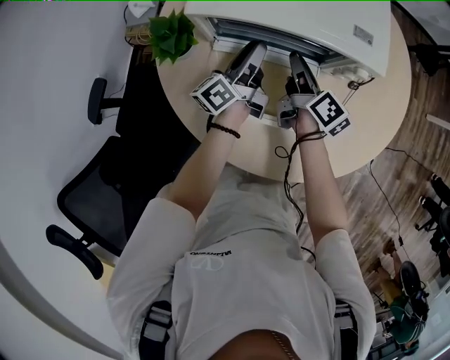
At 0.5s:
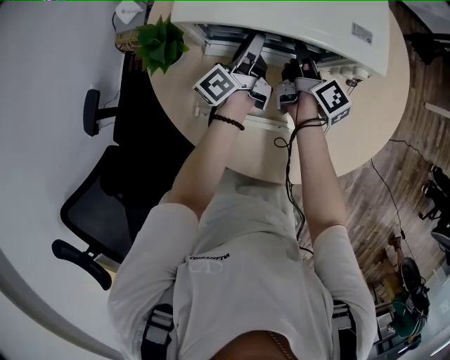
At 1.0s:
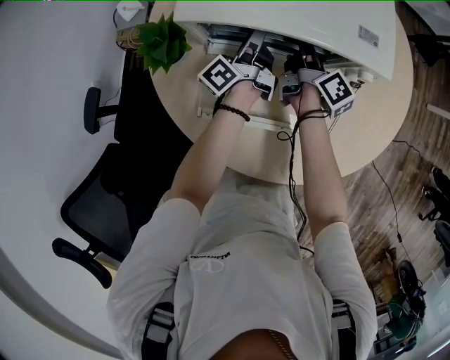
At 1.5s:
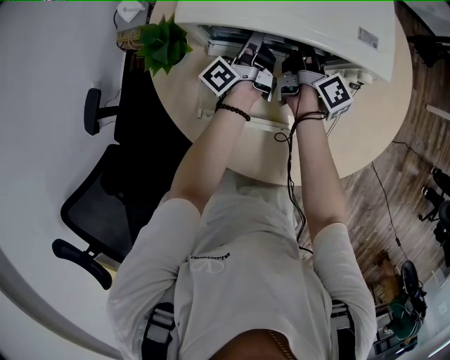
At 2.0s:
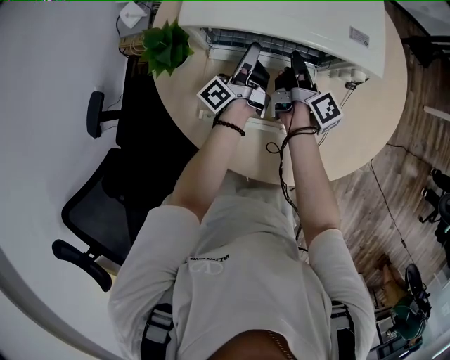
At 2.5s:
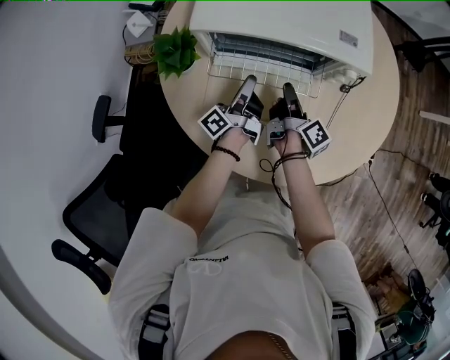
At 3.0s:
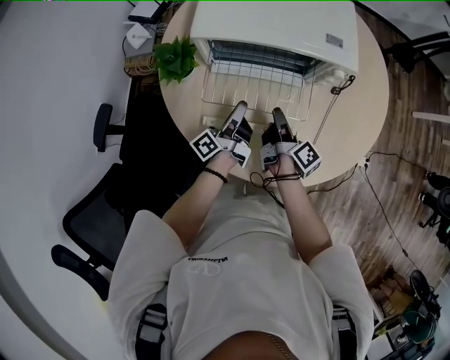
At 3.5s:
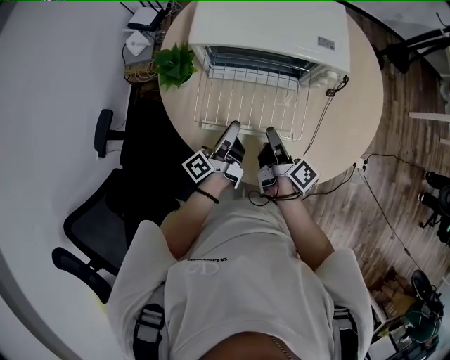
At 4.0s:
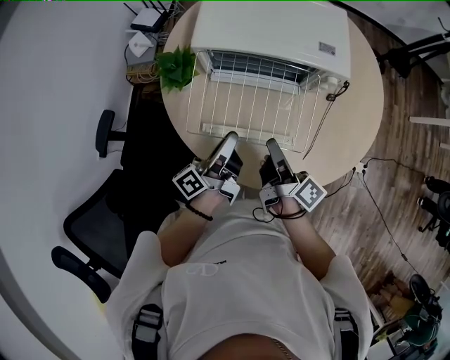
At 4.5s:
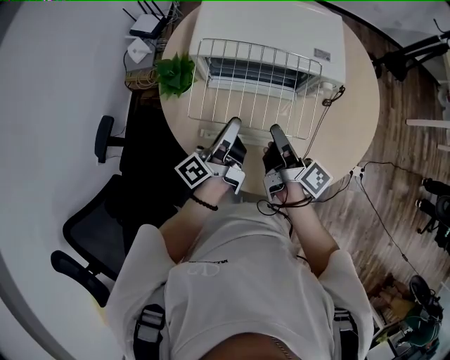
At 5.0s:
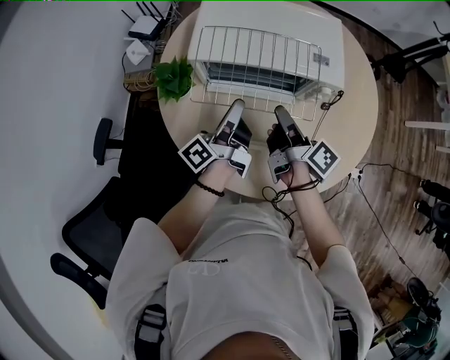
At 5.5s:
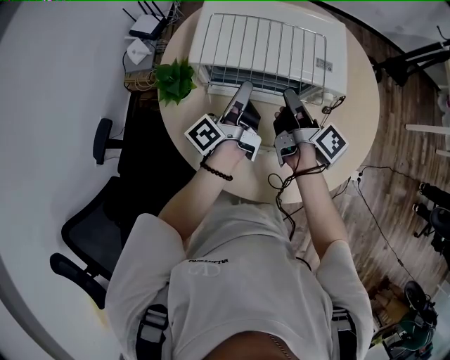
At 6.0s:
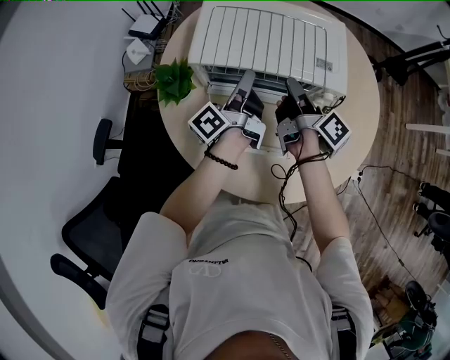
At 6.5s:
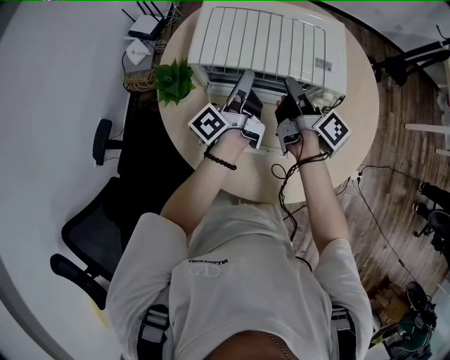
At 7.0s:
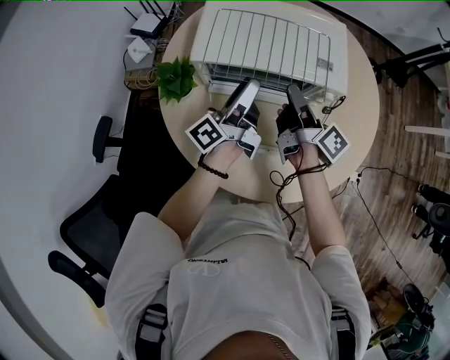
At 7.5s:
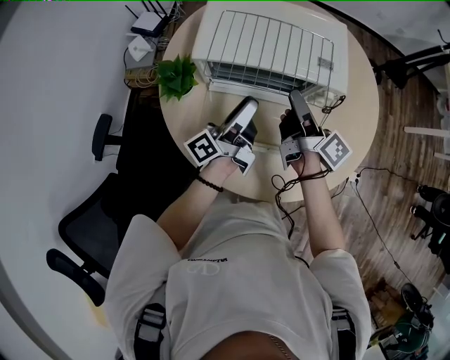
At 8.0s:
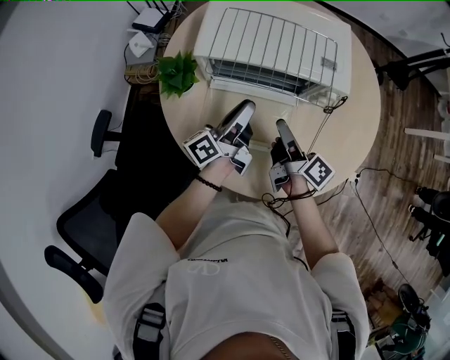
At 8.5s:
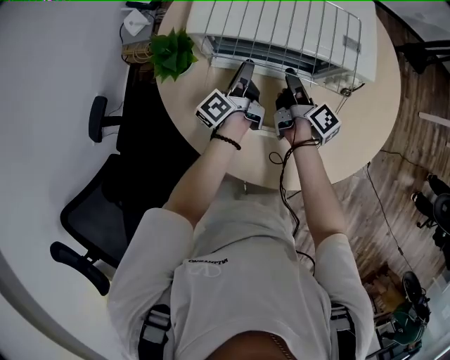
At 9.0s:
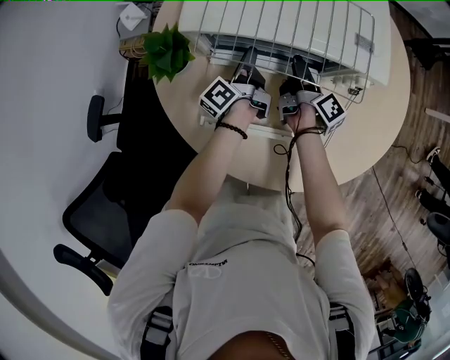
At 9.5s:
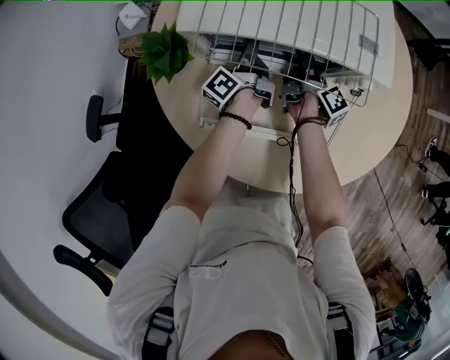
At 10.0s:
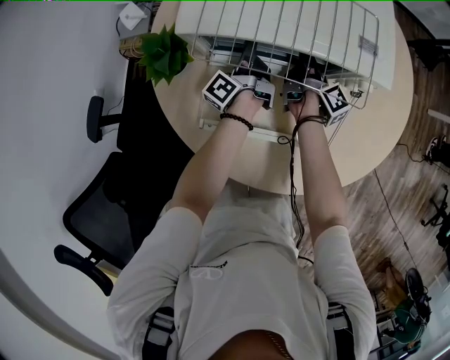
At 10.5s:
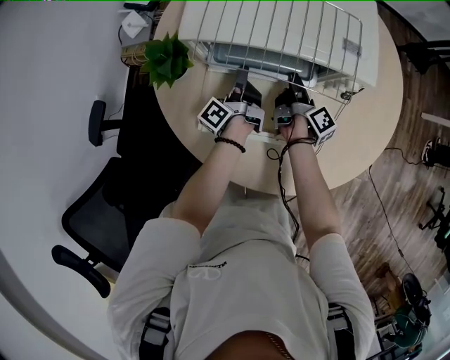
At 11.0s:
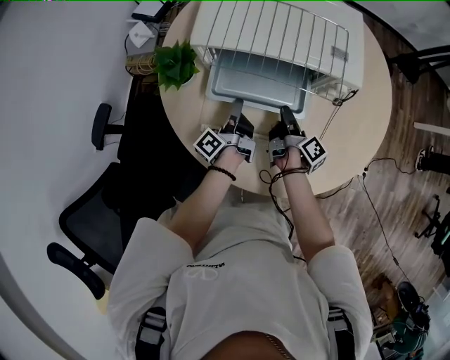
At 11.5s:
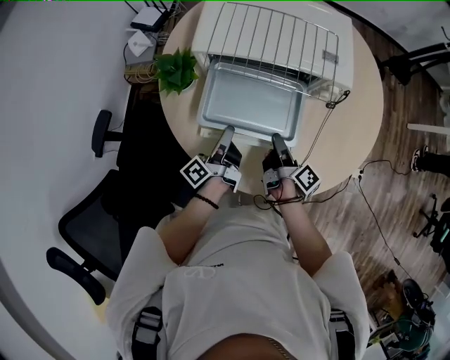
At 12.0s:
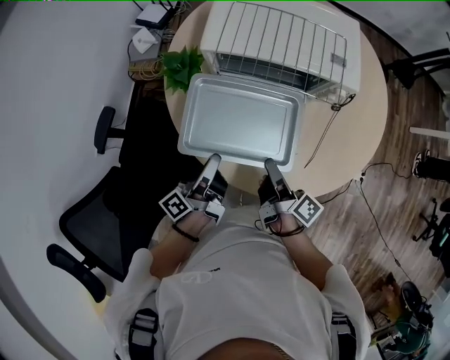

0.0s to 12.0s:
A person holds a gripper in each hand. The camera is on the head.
0.0s to 2.0s: The right gripper changes its angle by some 30 degrees, and closes up, while the left gripper rotates some 20 degrees, and closes up.
2.0s to 4.0s: The grippers both shift backward and upward by approximately 25 cm.
4.0s to 6.0s: Both grippers travel together forward, approximately 20 cm.
6.0s to 8.0s: The right gripper goes some 10 cm backward and downward, and opens up, while the left gripper travels backward by roughly 10 cm, and opens up.
8.0s to 10.0s: The left gripper goes roughly 20 cm downward and forward, rotates some 20 degrees, and closes up; the right gripper heads forward and downward, covering about 25 cm, changes its angle by approximately 30 degrees, and closes its fingers.
10.0s to 12.0s: The grippers both shift backward and upward by roughly 35 cm. The right gripper changes its angle by approximately 20 degrees.

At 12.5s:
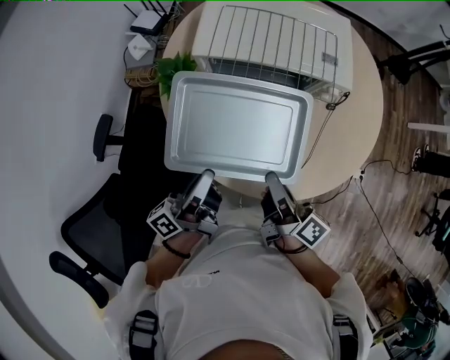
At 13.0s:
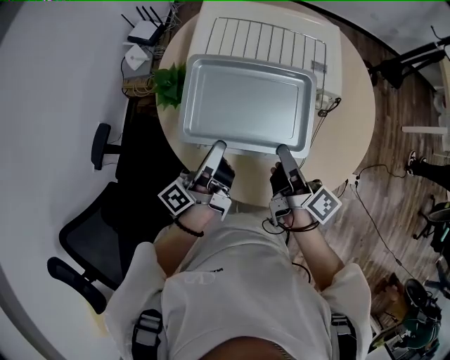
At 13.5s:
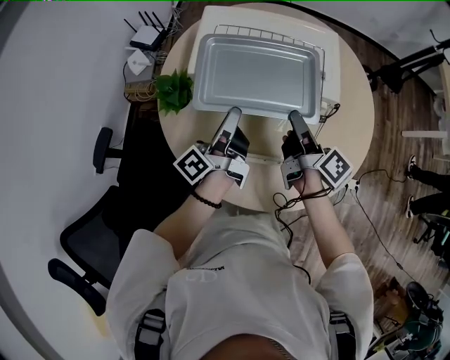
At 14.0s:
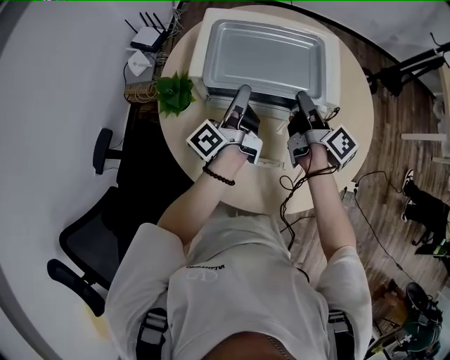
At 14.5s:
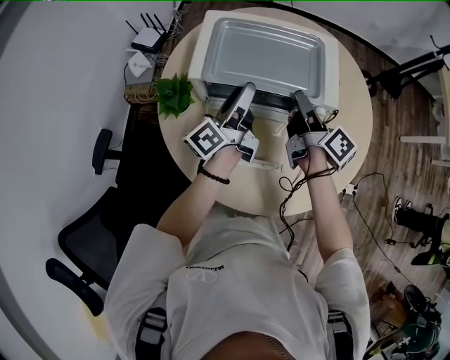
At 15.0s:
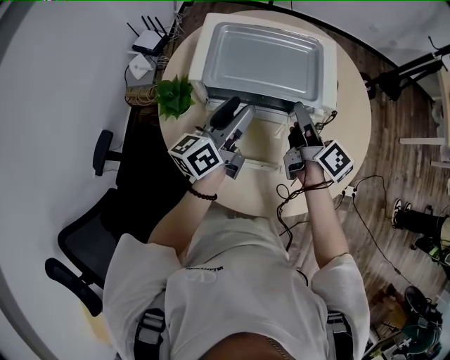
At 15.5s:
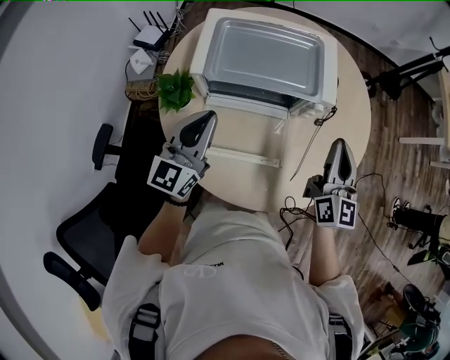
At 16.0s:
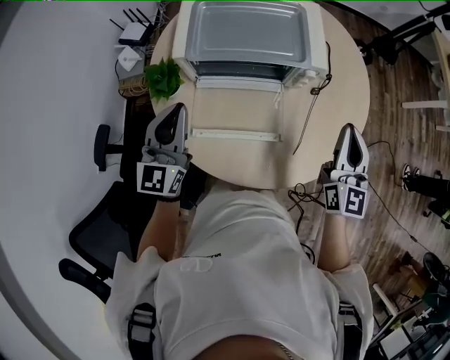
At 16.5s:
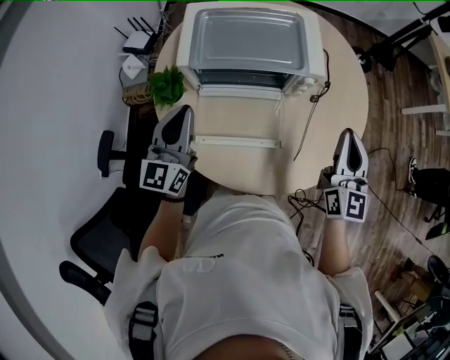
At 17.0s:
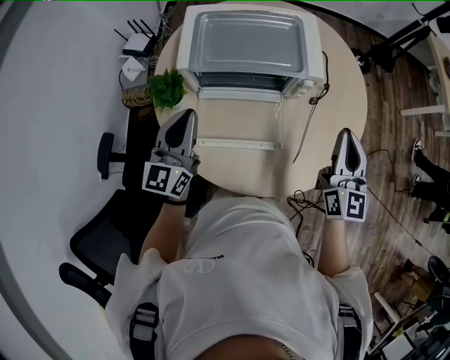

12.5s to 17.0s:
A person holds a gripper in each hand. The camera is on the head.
12.5s to 14.5s: The grippers both shift forward by roughly 25 cm. The left gripper opens up.
14.5s to 17.0s: The right gripper moves to the right, backward and upward, approximately 20 cm, rotates around the line of its fingers by some 70 degrees, counterclockwise from behind, and closes up, while the left gripper travels backward and to the left by some 15 cm, rotates around the line of its fingers by approximately 60 degrees, clockwise from behind, and closes up.

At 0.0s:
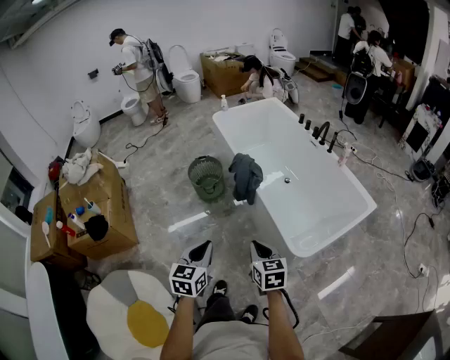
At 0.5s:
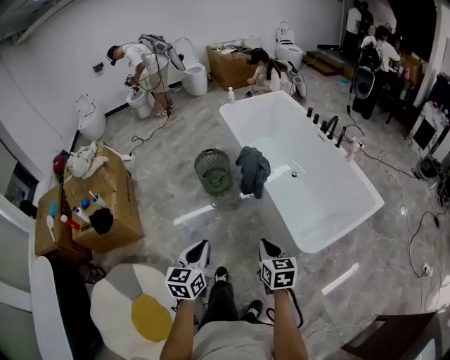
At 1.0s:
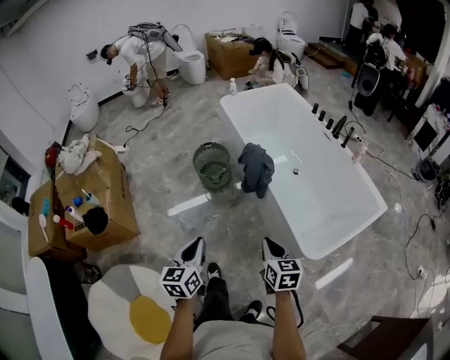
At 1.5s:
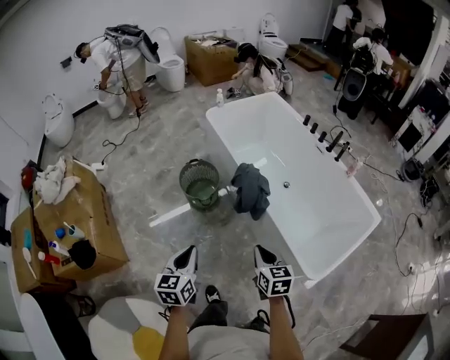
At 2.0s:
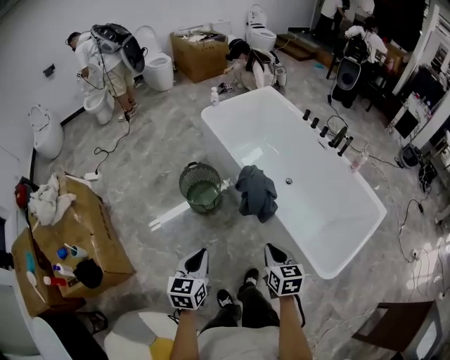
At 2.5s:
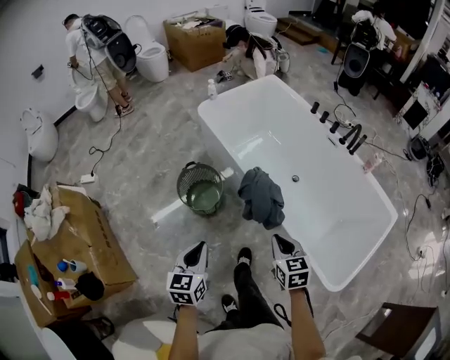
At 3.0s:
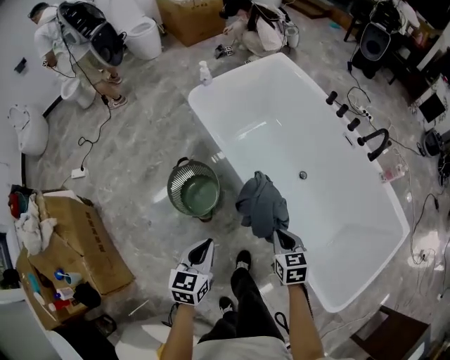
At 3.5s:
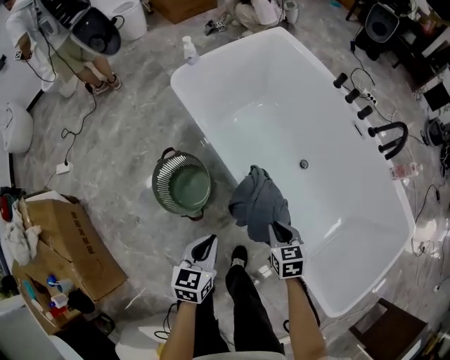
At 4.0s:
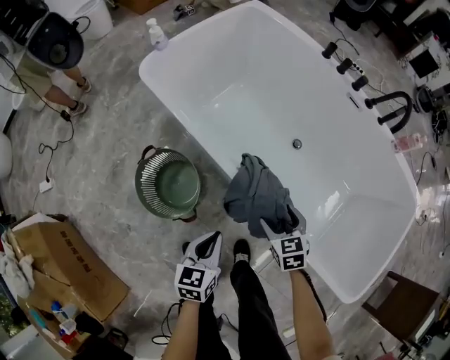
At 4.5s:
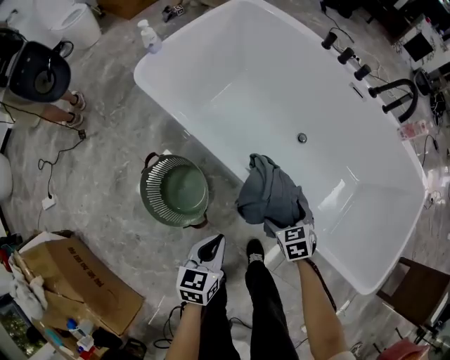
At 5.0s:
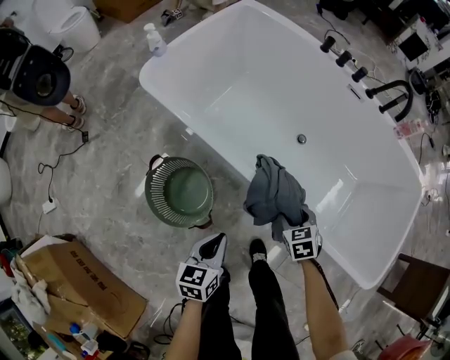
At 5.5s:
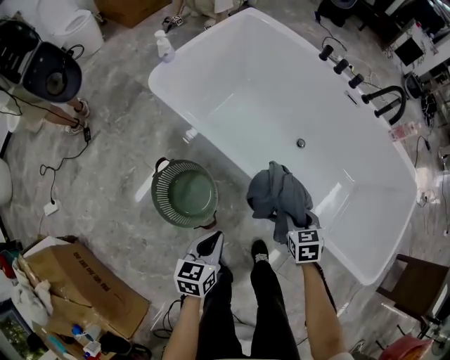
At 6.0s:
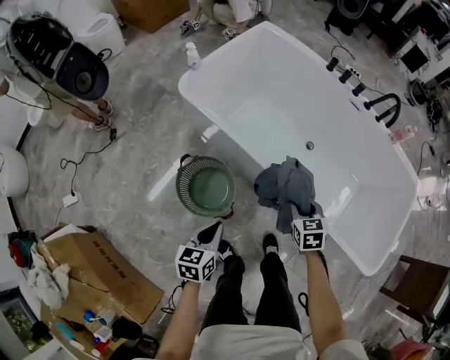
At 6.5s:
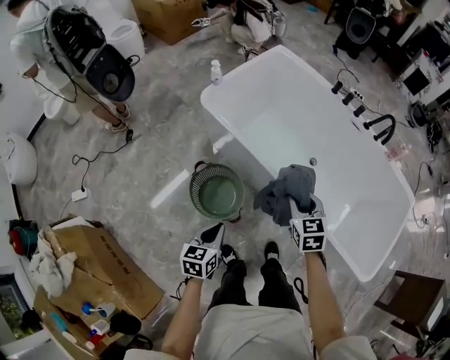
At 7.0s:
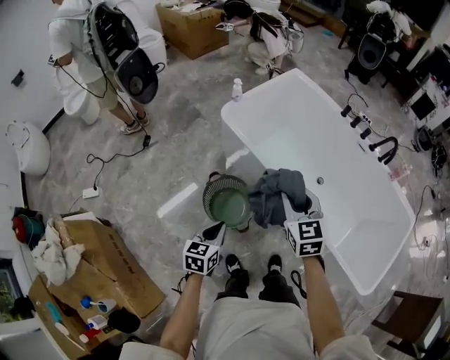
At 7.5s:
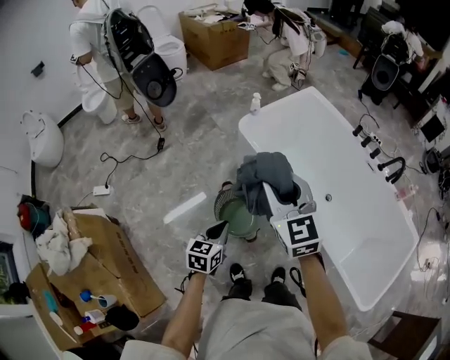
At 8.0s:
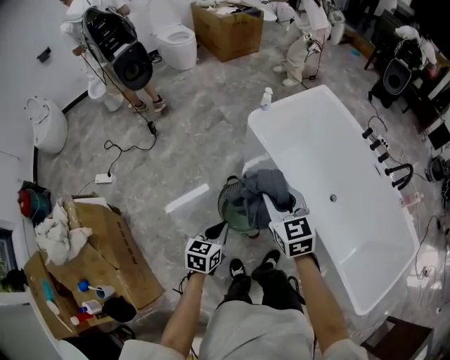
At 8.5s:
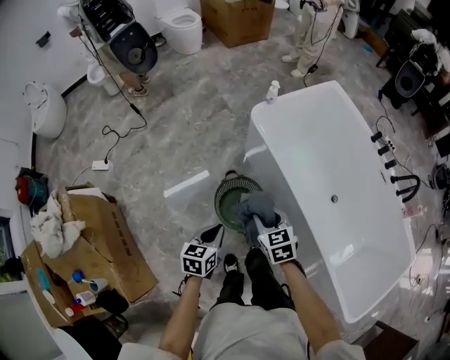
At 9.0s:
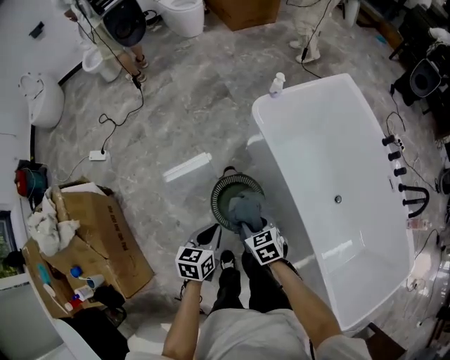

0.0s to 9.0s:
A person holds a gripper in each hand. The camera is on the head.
0.0s to 2.0s: Both grippers move forward and to the left, about 30 cm.
2.0s to 4.5s: The two grippers go approximately 50 cm forward and downward. The right gripper turns by roughly 30 degrees, and opens; the left gripper swivels some 30 degrees.
4.5s to 7.0s: The right gripper is displaced upward and to the left by about 50 cm, tilts its fingers about 30 degrees upward, and closes up. Meanwhile the left gripper travels to the left, upward and backward by about 30 cm.
7.0s to 9.0s: The left gripper changes place by about 10 cm, and swivels approximately 20 degrees. Meanwhile the right gripper shifts some 25 cm downward, and turns by approximately 40 degrees.

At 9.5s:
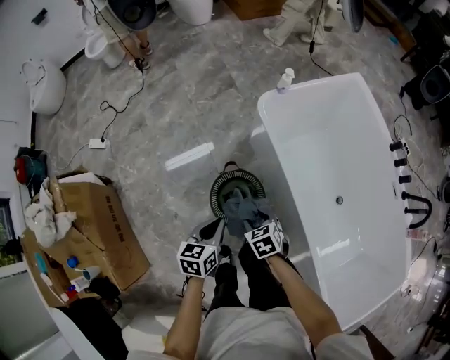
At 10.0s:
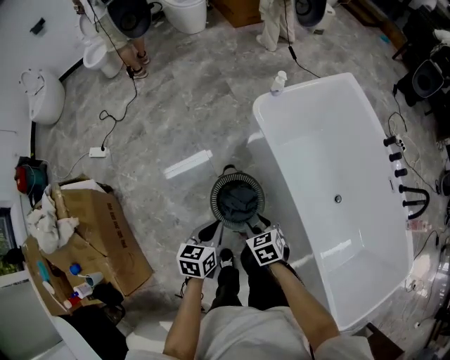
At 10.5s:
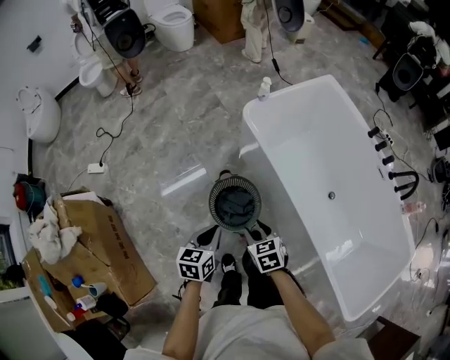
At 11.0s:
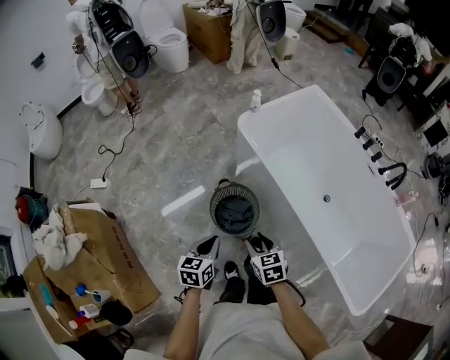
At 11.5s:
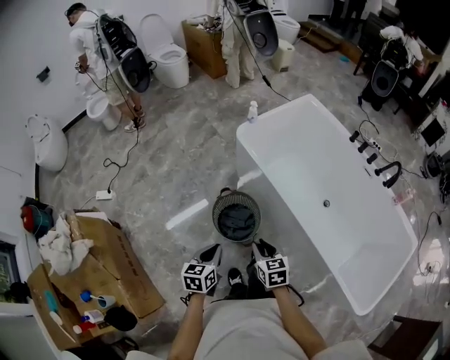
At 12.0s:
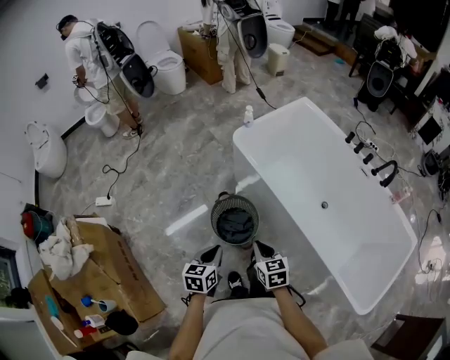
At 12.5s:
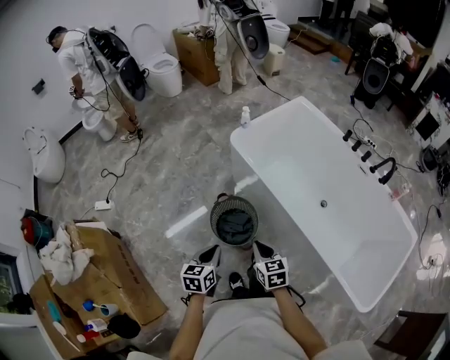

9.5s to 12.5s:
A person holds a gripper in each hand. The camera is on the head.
9.5s to 11.0s: The grippers both shift backward and upward by some 15 cm. The right gripper swivels approximately 20 degrees.
11.0s to 12.5s: The right gripper closes its fingers.
